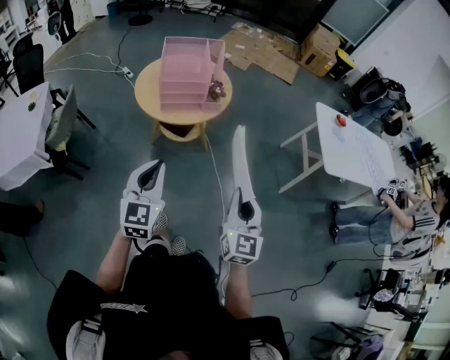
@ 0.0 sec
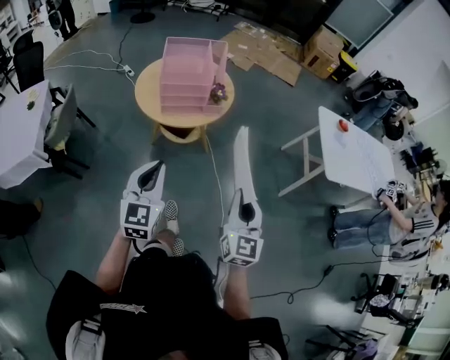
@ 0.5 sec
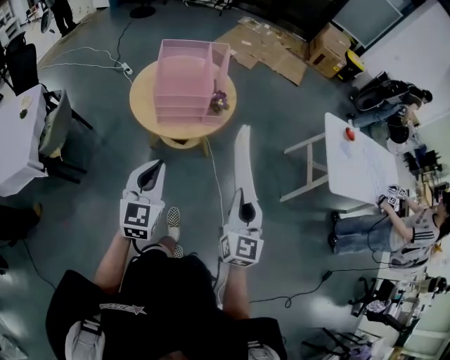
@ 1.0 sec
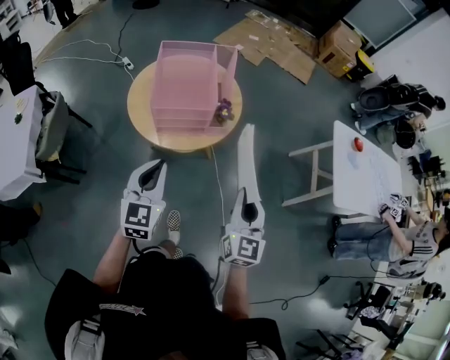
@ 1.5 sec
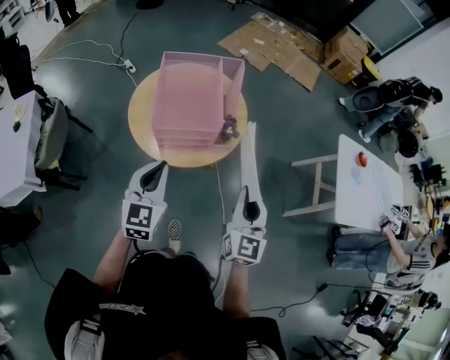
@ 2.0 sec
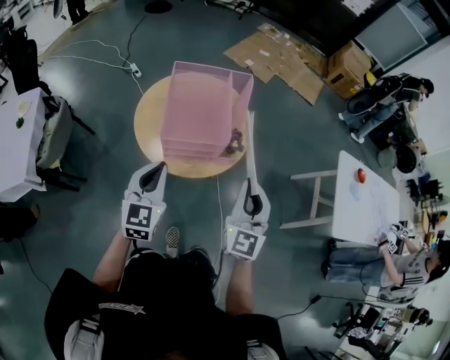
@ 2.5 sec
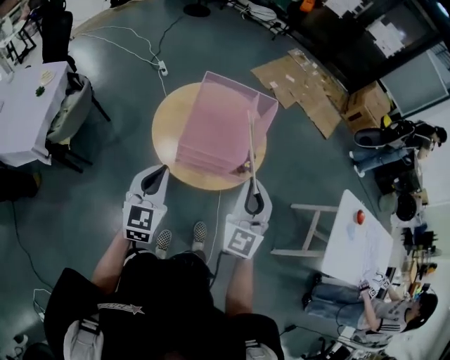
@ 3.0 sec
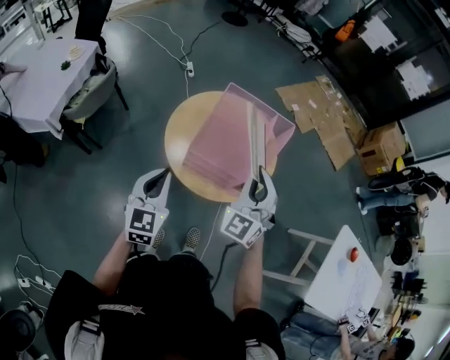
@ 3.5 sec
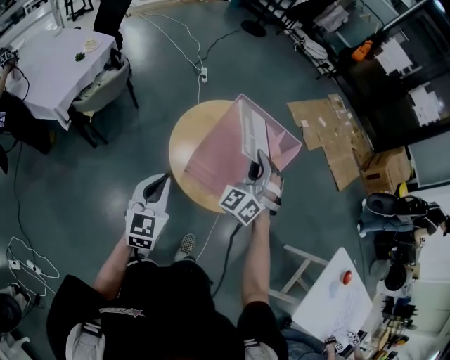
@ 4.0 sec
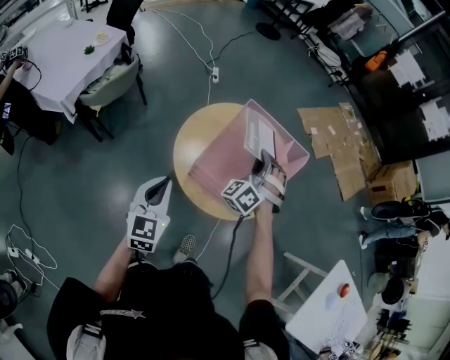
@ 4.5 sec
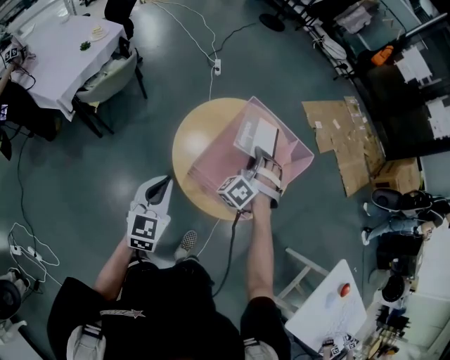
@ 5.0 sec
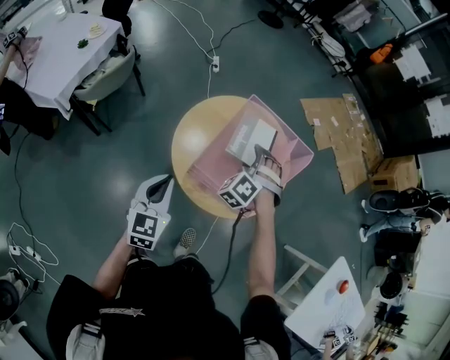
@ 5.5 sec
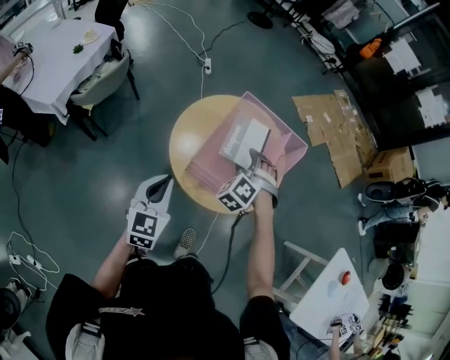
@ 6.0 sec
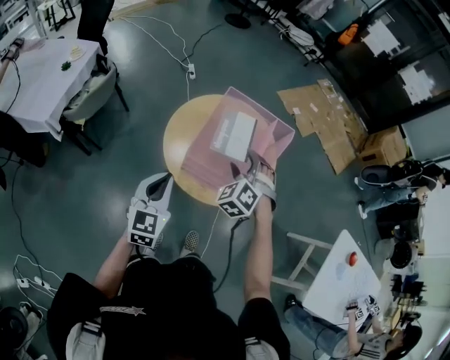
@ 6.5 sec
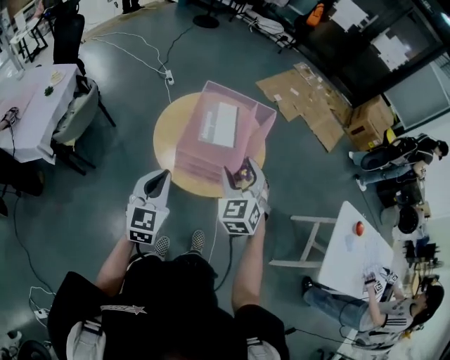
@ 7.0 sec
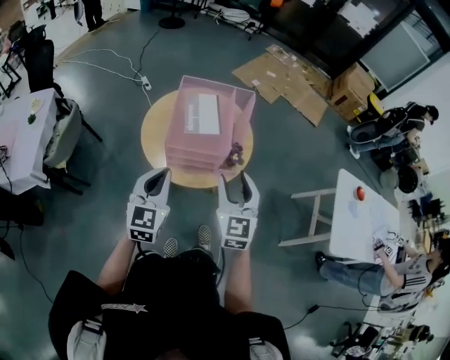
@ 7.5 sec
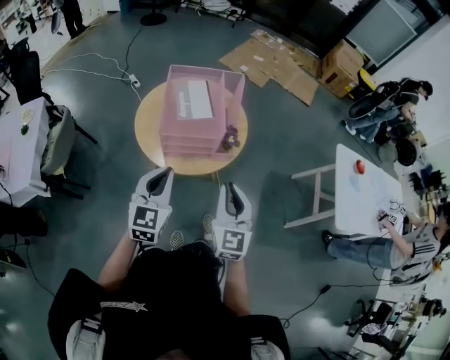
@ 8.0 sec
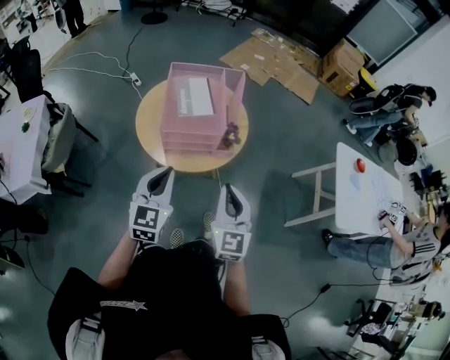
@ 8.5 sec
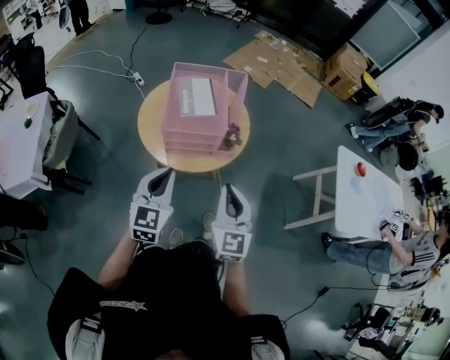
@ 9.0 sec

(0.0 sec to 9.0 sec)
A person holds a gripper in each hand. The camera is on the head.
0.0 sec - 2.0 sec: The grippers both shift forward by about 30 cm.
2.0 sec - 4.5 sec: The right gripper moves approximately 5 cm upward and comes back, and twists approximately 80 degrees counterclockwise, seen from behind, while the left gripper shifts by about 10 cm, and turns by roughly 40 degrees.
4.5 sec - 7.0 sec: The right gripper heads backward, covering approximately 15 cm, changes its angle by about 40 degrees, and opens.
7.0 sec - 9.0 sec: The left gripper goes roughly 10 cm backward and to the right. The right gripper shifts roughly 20 cm backward, changes its angle by roughly 40 degrees, and closes.

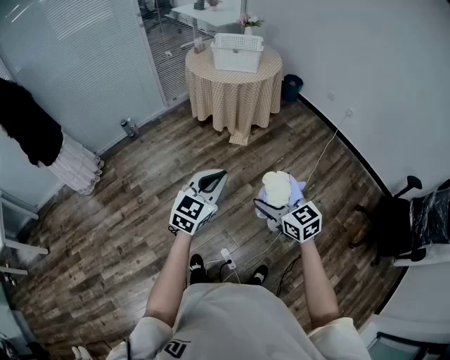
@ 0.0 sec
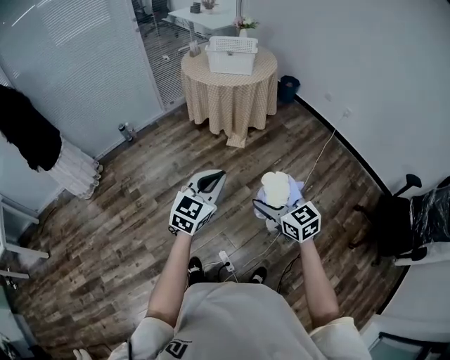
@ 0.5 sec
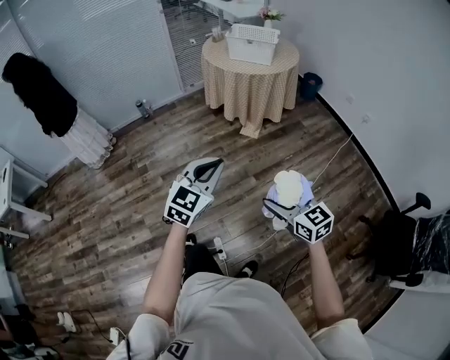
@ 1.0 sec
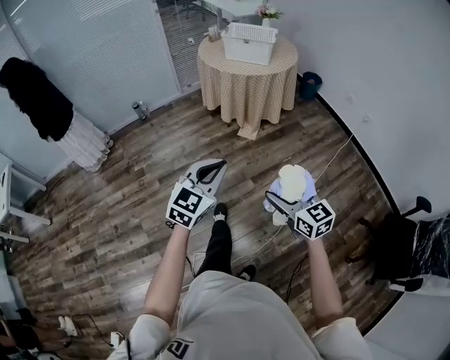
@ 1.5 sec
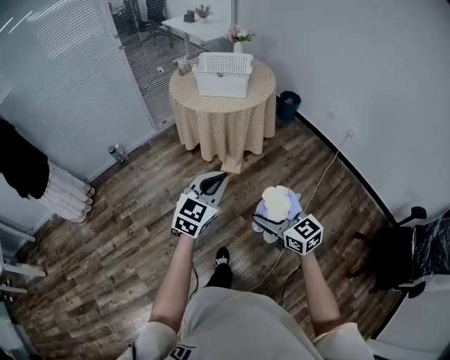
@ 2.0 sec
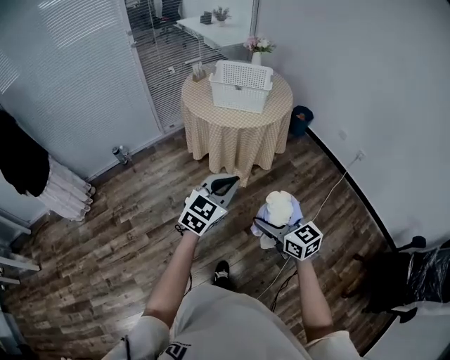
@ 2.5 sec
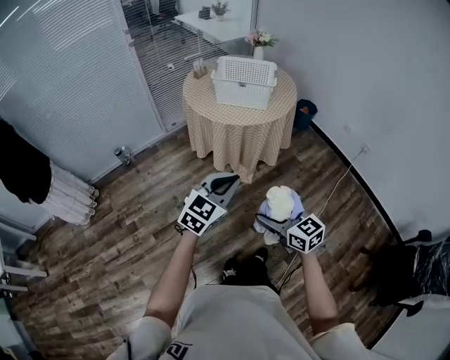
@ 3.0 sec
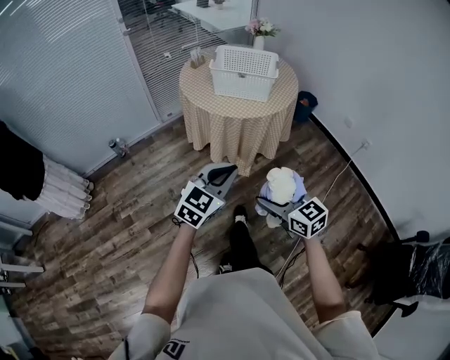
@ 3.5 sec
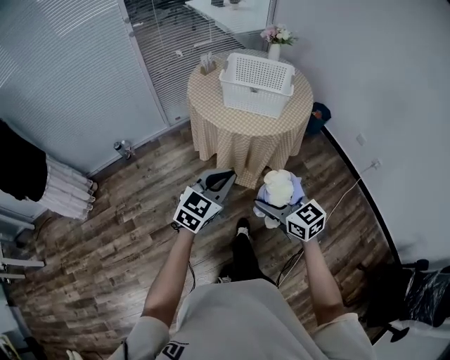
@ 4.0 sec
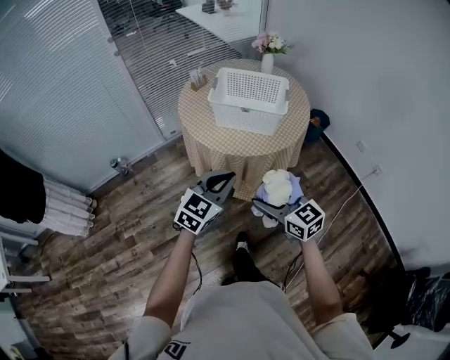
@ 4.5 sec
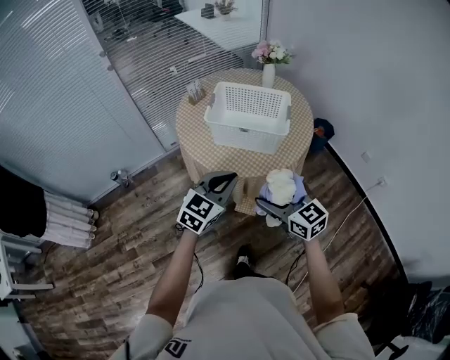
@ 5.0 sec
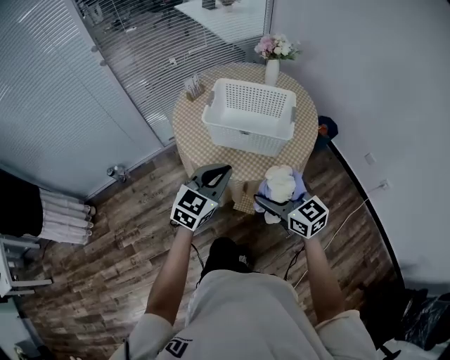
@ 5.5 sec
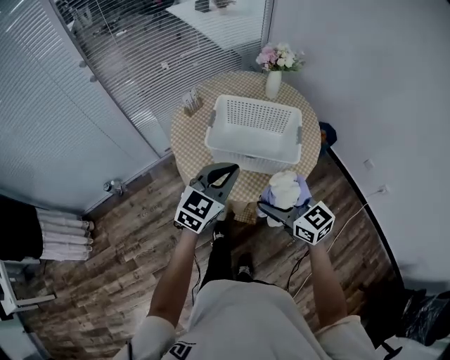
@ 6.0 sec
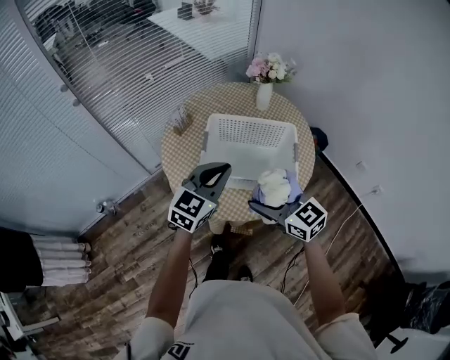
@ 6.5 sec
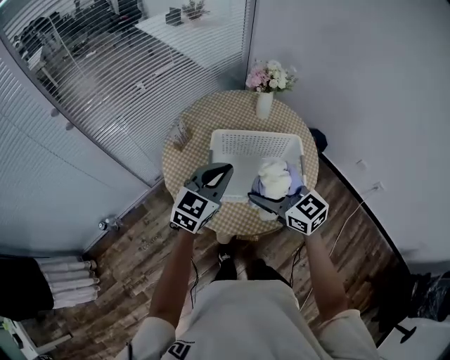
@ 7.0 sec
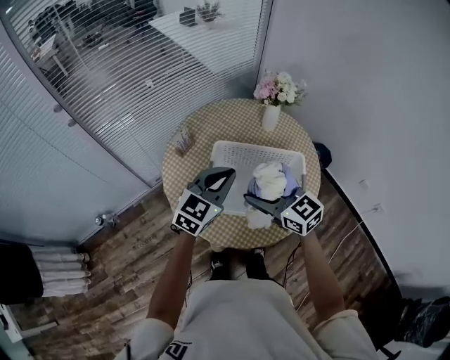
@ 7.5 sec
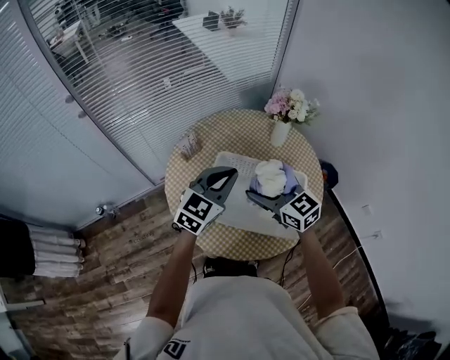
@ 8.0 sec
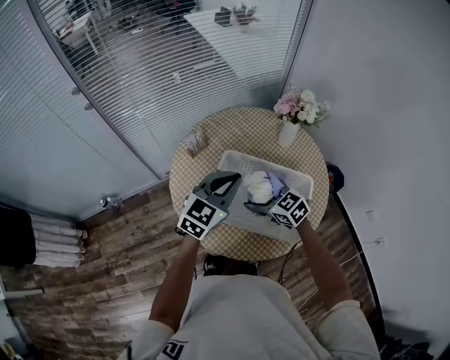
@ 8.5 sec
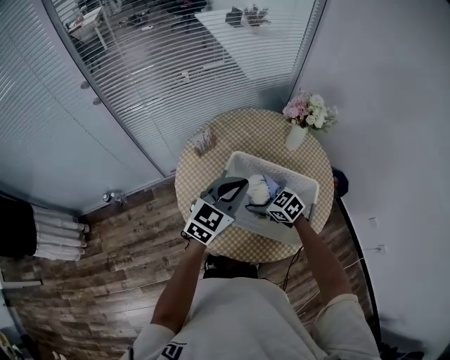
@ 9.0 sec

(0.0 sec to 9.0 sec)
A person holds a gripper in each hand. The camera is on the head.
0.0 sec - 2.0 sec: Both grippers move forward and to the right, roughly 25 cm.
2.0 sec - 4.5 sec: Both grippers move forward, roughly 40 cm.
4.5 sec - 7.0 sec: Both grippers are carried forward, approximately 40 cm.
7.0 sec - 9.0 sec: The left gripper moves forward, about 5 cm. The right gripper is displaced downward and forward by some 20 cm, and swivels approximately 40 degrees.

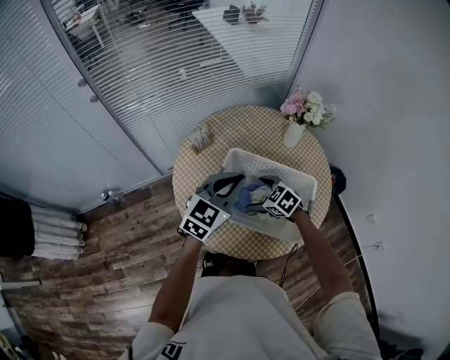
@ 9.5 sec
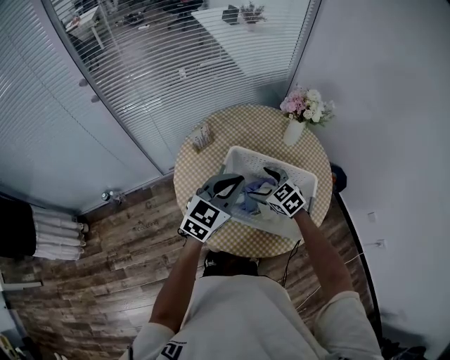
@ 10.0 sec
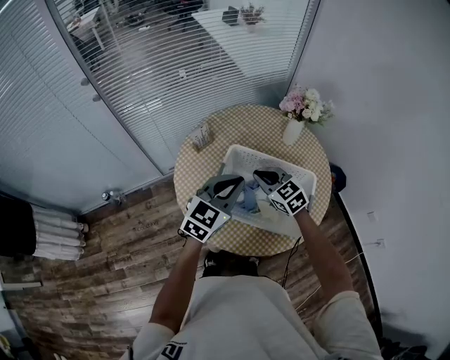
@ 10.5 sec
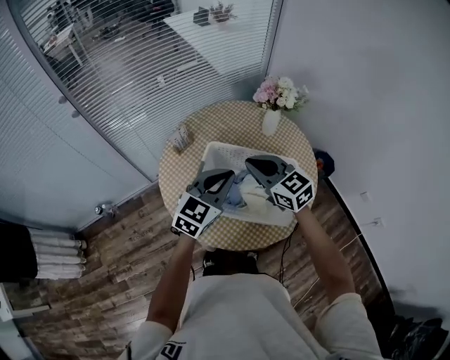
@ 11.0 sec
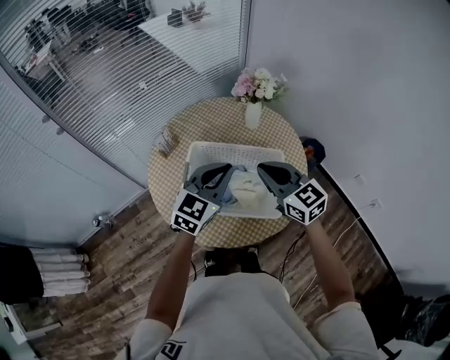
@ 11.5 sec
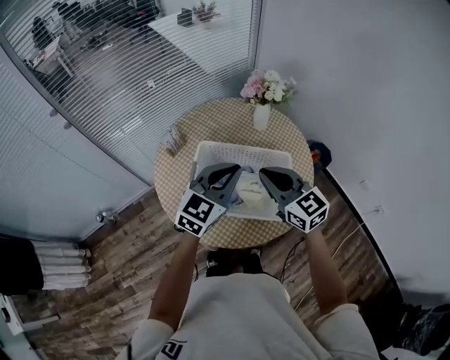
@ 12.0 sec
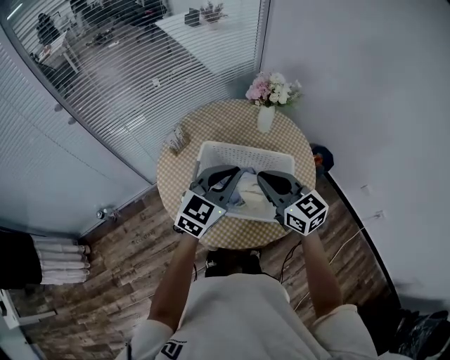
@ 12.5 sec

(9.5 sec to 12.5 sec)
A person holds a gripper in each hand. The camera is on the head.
9.5 sec - 11.0 sec: The right gripper heads upward, covering some 20 cm, angles its fingers upward, by about 30 degrees, and closes up.
11.0 sec - 12.5 sec: The right gripper moves to the right and backward, approximately 10 cm.

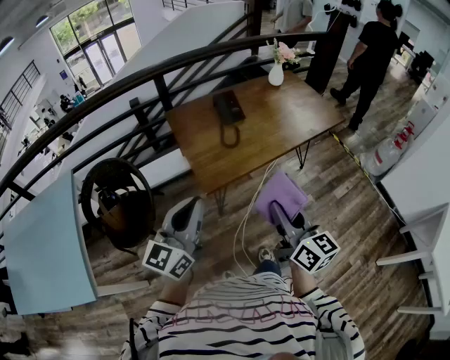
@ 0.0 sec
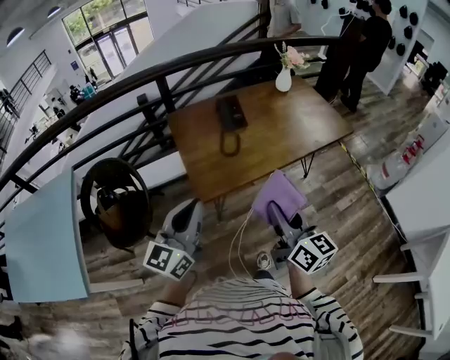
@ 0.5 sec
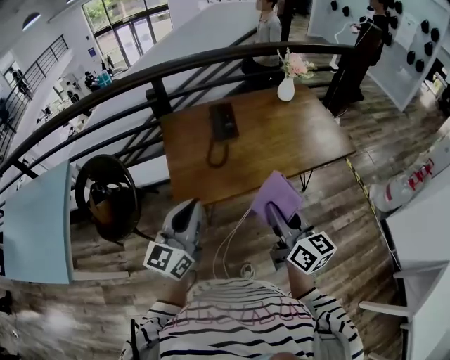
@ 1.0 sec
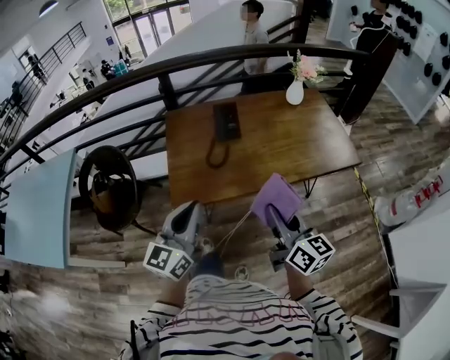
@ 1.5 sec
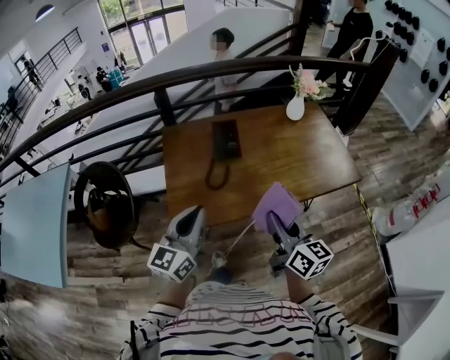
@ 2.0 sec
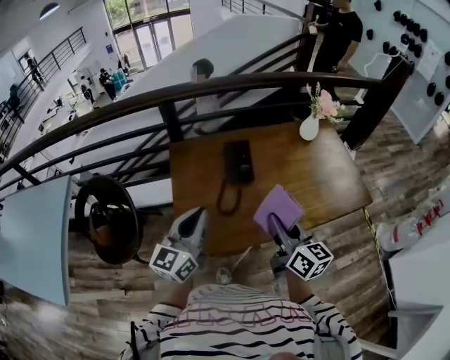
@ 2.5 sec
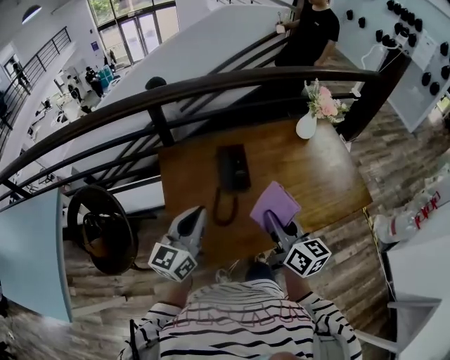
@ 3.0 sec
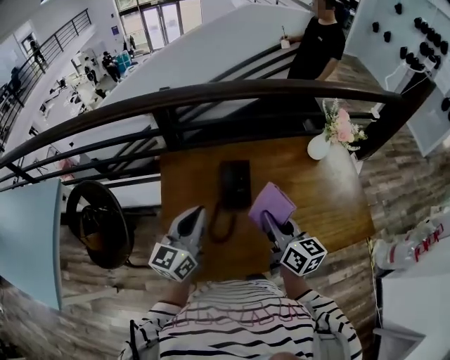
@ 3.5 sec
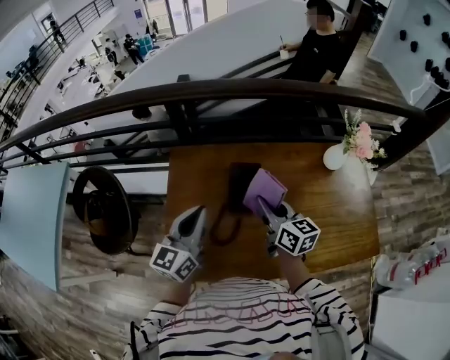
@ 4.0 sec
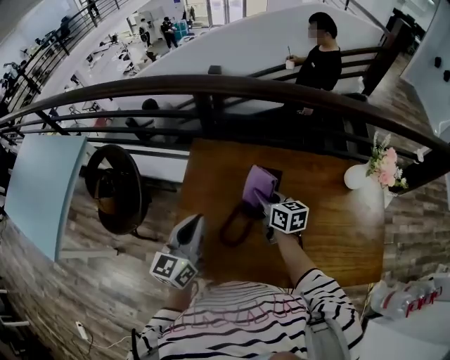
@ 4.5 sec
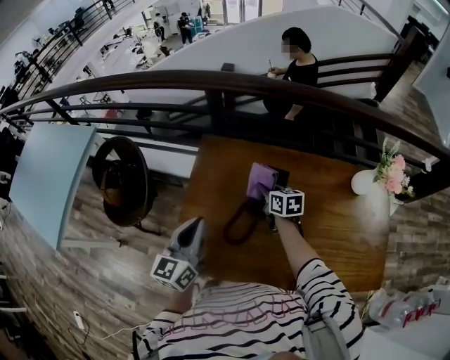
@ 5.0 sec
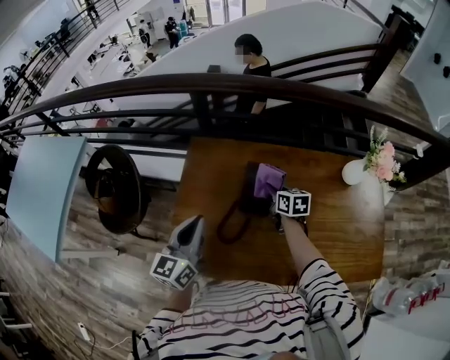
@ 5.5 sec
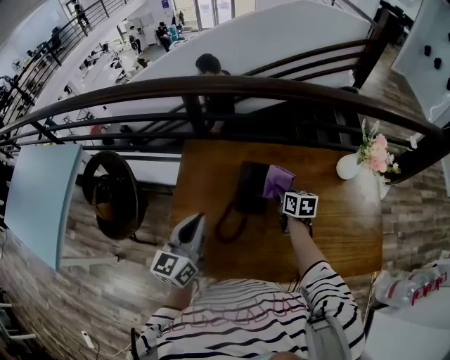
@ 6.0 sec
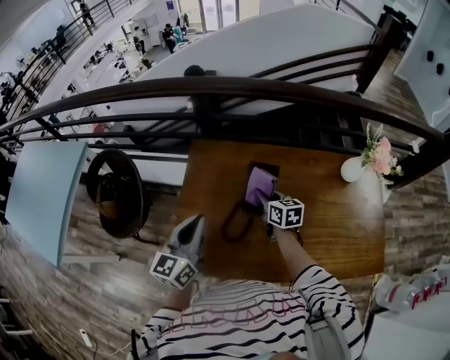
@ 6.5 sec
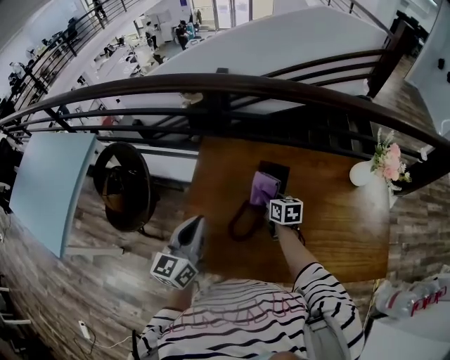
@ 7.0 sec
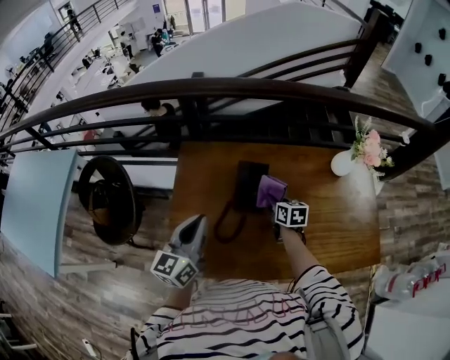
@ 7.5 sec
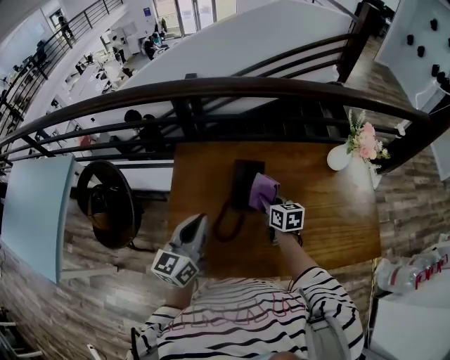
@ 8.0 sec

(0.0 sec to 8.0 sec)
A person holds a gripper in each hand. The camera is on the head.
0.0 sec - 2.0 sec: The two grippers go some 35 cm forward and to the right.
2.0 sec - 4.0 sec: The two grippers go roughly 40 cm forward.
4.0 sec - 6.0 sec: The right gripper is displaced downward, forward and to the right by roughly 15 cm, and turns by roughly 20 degrees.
6.0 sec - 8.0 sec: The right gripper shifts roughly 5 cm backward.
